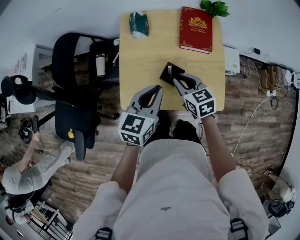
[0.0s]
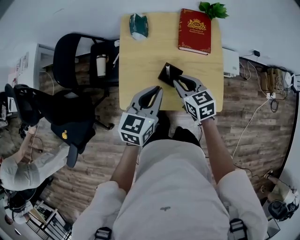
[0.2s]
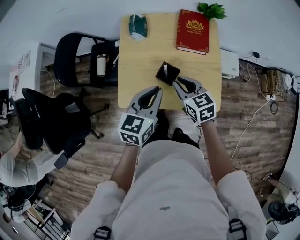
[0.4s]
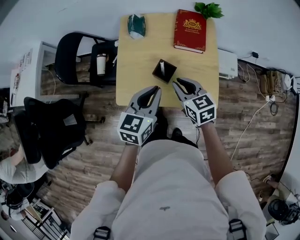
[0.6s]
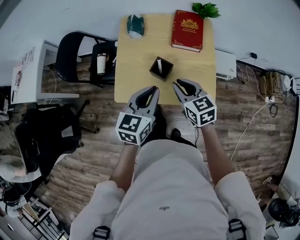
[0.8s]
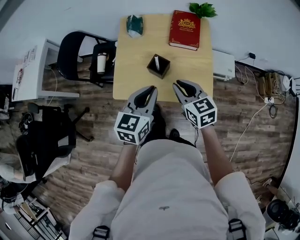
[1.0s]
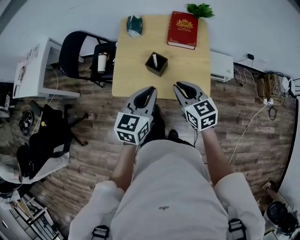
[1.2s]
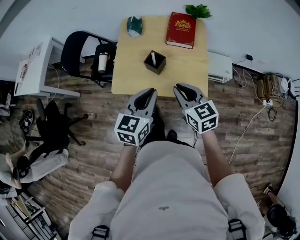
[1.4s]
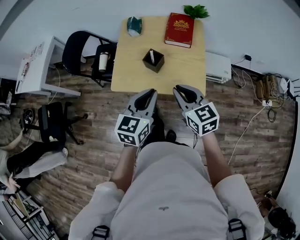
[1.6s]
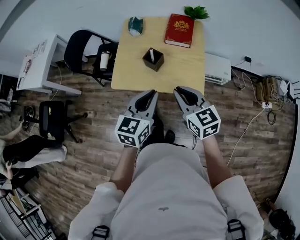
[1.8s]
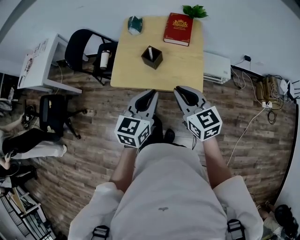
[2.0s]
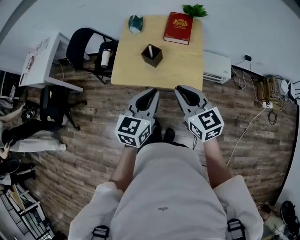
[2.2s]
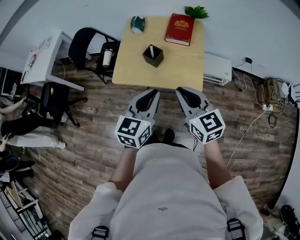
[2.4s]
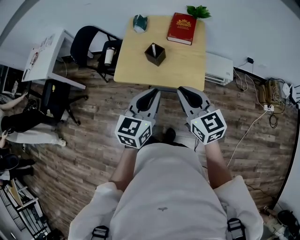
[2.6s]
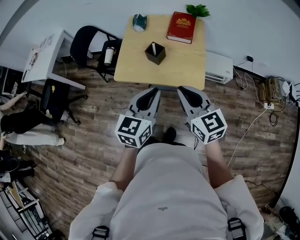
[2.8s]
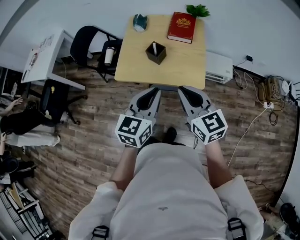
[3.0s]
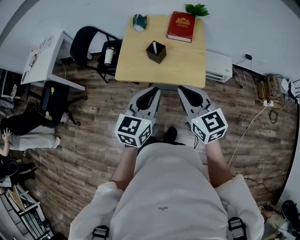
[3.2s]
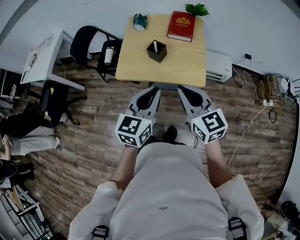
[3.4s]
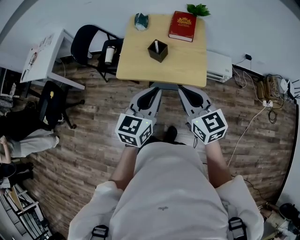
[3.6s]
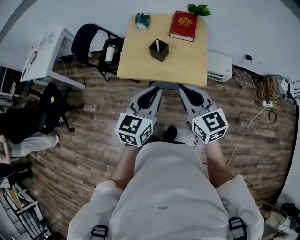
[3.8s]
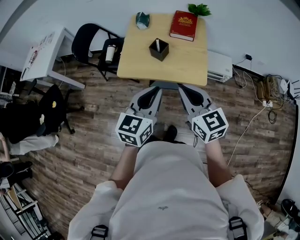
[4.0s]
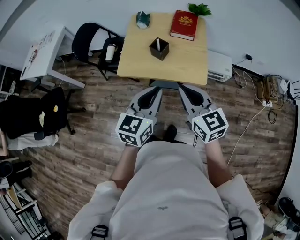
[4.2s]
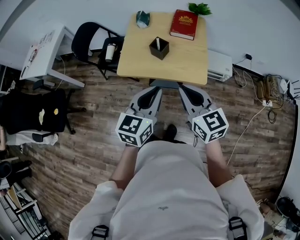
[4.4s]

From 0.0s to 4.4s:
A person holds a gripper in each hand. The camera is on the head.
From 0.0s to 1.4s: The right gripper is displaced backward, upward and to the right by roughly 20 cm. Meanwhile the left gripper travels backward and to the right by roughly 15 cm.
From 1.4s to 3.0s: Both grippers travel together backward and upward, about 15 cm.
From 3.0s to 4.4s: There are only small adjustments of the grippers.

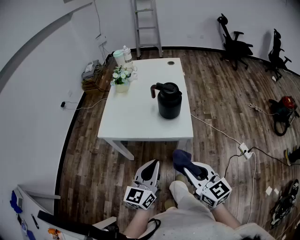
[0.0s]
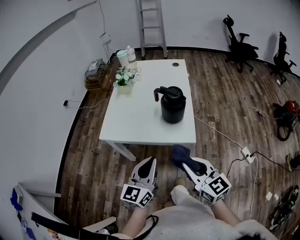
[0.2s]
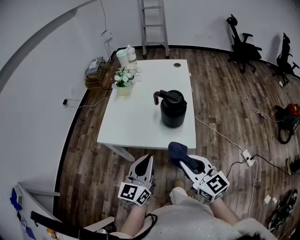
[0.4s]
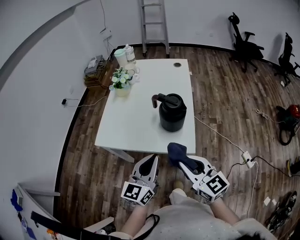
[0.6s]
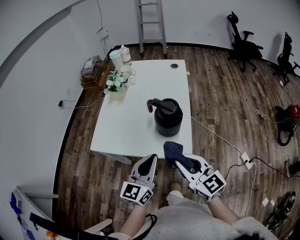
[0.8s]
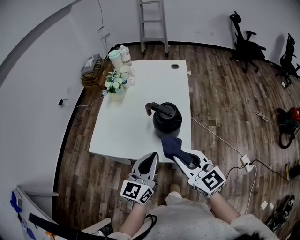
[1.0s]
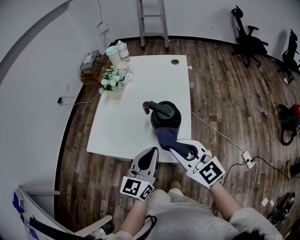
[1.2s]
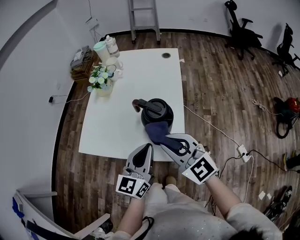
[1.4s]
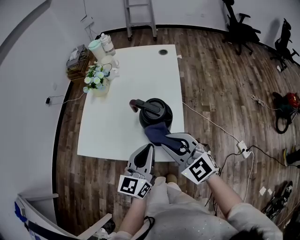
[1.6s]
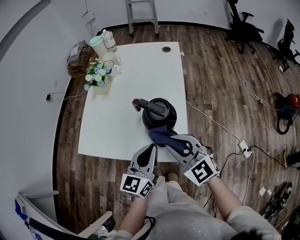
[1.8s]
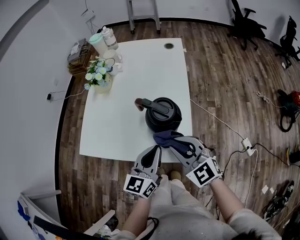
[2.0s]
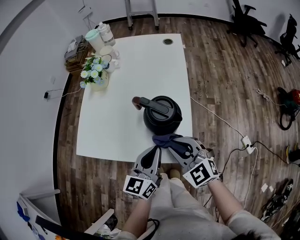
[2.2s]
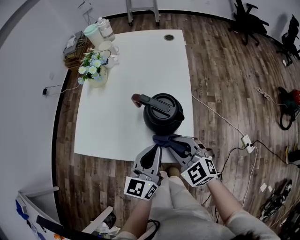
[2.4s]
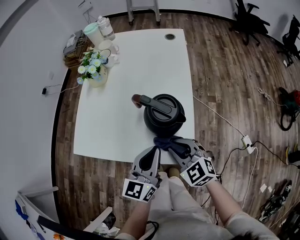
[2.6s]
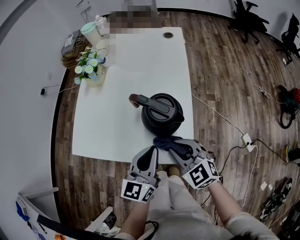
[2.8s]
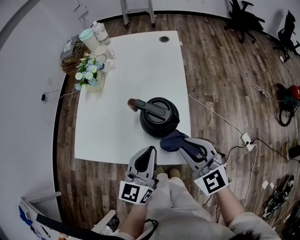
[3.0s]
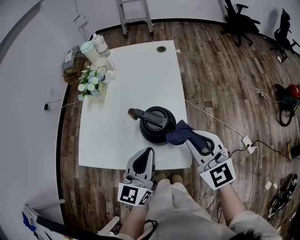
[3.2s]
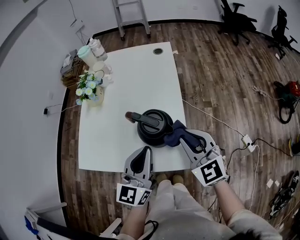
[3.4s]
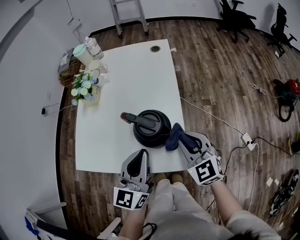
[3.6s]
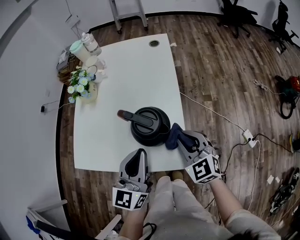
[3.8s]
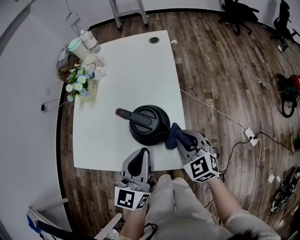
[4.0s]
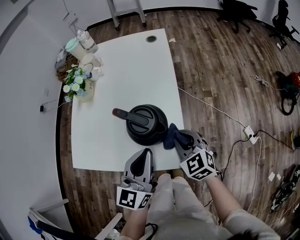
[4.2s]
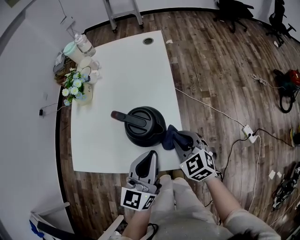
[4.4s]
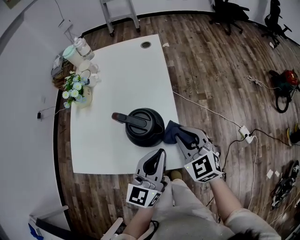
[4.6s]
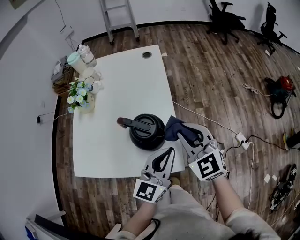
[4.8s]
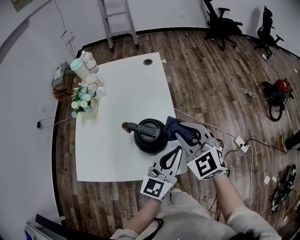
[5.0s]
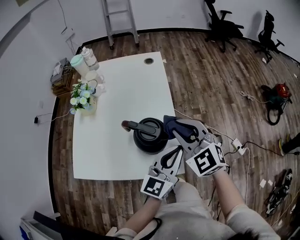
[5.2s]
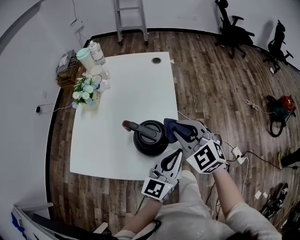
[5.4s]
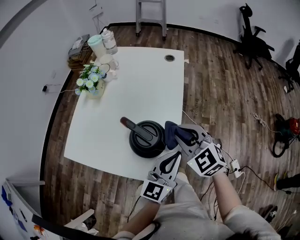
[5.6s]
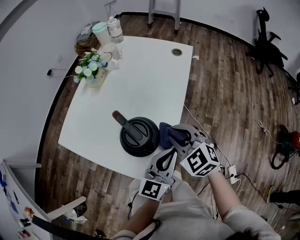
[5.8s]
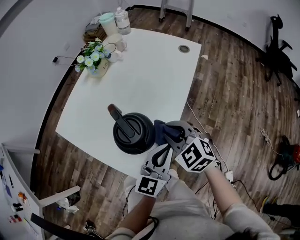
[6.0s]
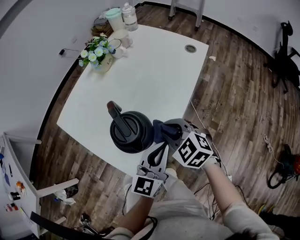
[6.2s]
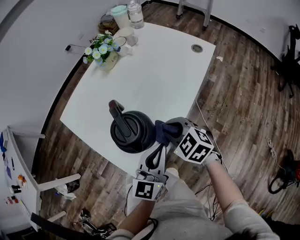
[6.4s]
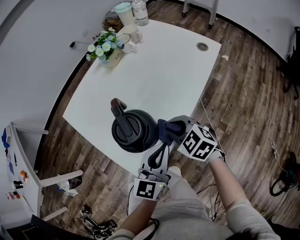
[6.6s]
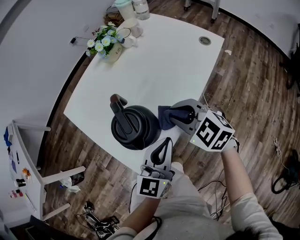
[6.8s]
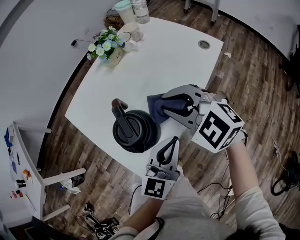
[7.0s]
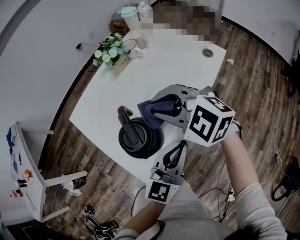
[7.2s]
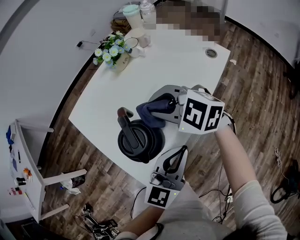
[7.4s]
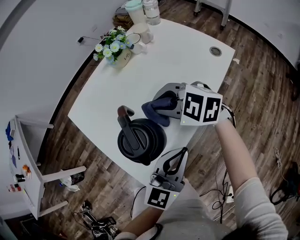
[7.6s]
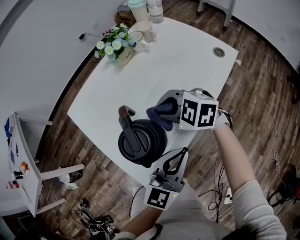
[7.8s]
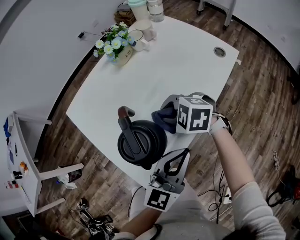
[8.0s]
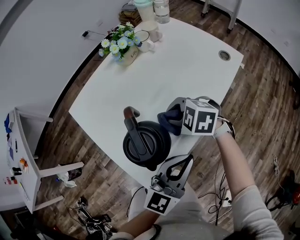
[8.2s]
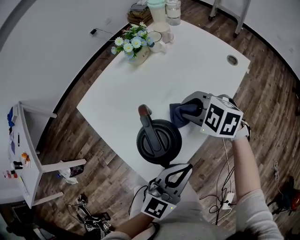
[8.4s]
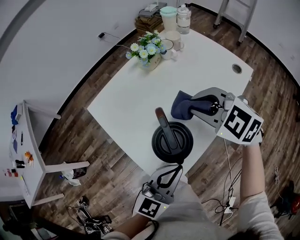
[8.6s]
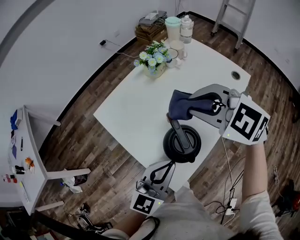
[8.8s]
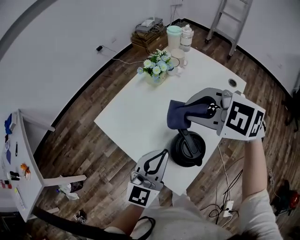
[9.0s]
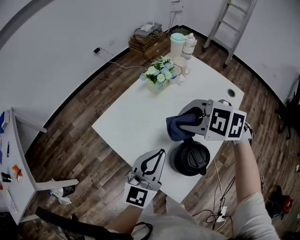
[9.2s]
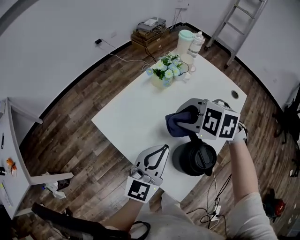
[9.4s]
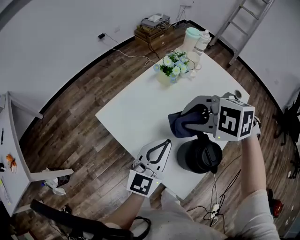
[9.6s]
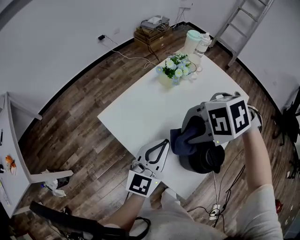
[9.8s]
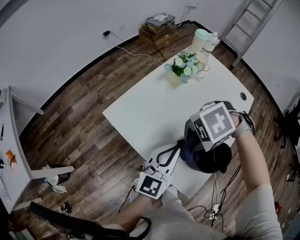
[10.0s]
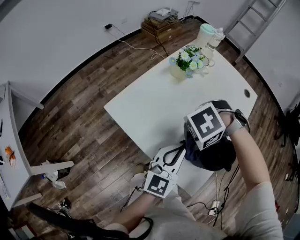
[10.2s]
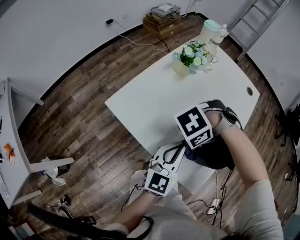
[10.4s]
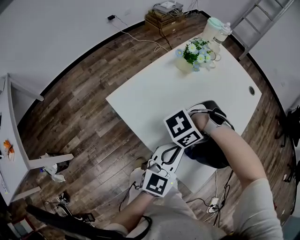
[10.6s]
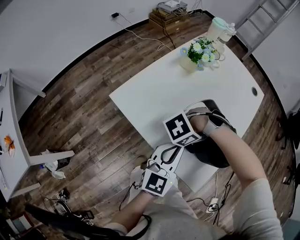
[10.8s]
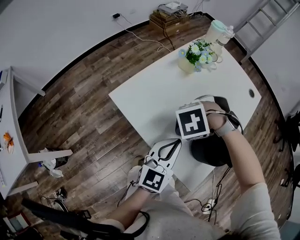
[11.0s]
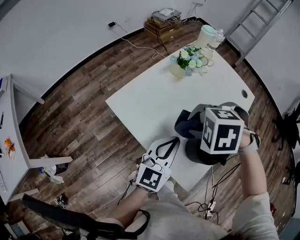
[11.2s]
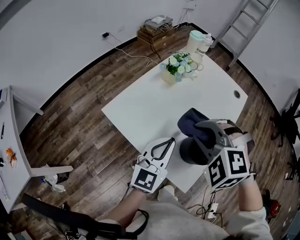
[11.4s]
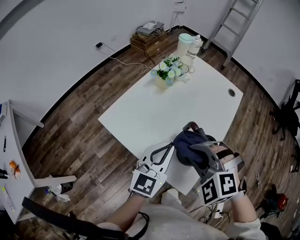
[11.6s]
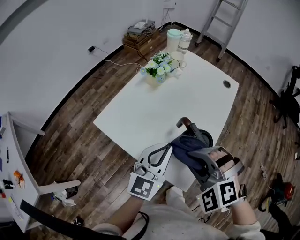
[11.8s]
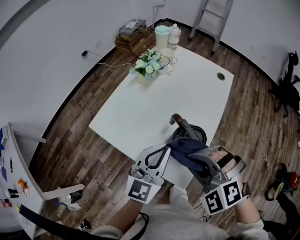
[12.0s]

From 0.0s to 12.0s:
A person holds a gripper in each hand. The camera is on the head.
From 0.0s to 1.6s: The left gripper heads forward and to the right, covering roughly 25 cm. Meanwhile the right gripper goes approximately 25 cm forward, and turns by roughly 30 degrees.
From 1.6s to 3.0s: The right gripper goes downward and returns, about 15 cm each way.
From 3.0s to 4.4s: The right gripper travels downward by roughly 10 cm.
From 4.4s to 6.0s: The right gripper reaches about 15 cm upward, then returns, and turns by approximately 40 degrees; the left gripper ends up roughly 15 cm from where it was.
From 6.0s to 7.6s: The left gripper ends up roughly 5 cm from where it was; the right gripper swings up and down, roughly 15 cm each way, with 2 reversals, and turns by approximately 40 degrees.
From 7.6s to 9.0s: The right gripper heads upward and to the left, covering about 15 cm. Meanwhile the left gripper heads to the left and forward, covering roughly 20 cm.
From 9.0s to 10.4s: The left gripper moves downward, about 10 cm. The right gripper shifts about 20 cm downward, and swivels approximately 80 degrees.
From 10.4s to 12.0s: The two grippers go about 10 cm upward. The right gripper swivels roughly 90 degrees.

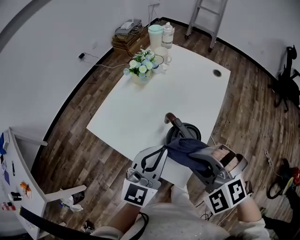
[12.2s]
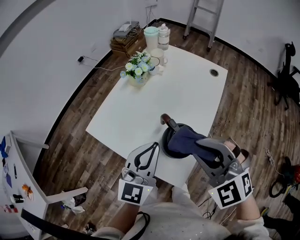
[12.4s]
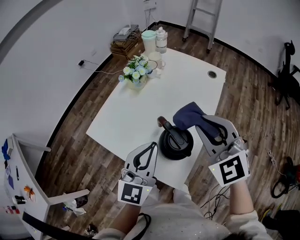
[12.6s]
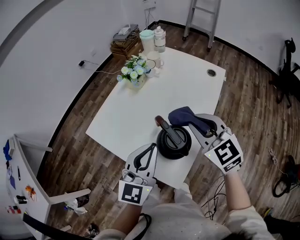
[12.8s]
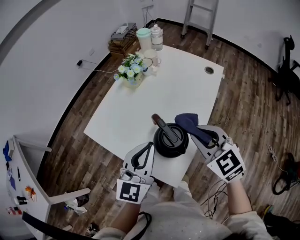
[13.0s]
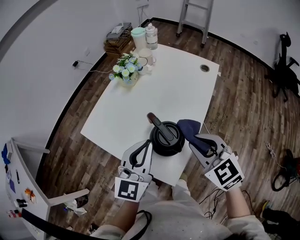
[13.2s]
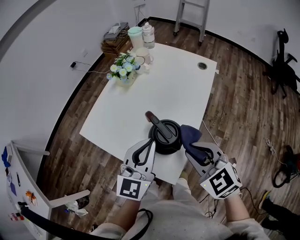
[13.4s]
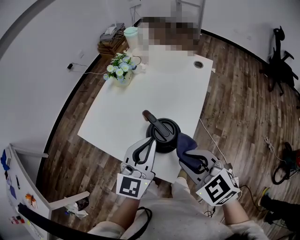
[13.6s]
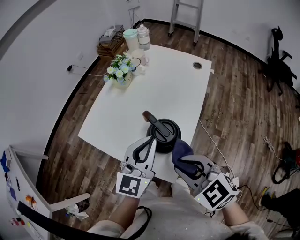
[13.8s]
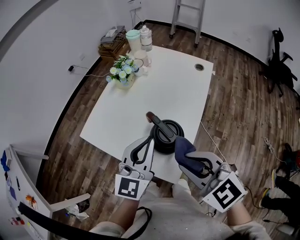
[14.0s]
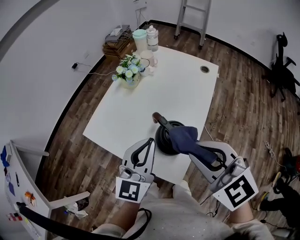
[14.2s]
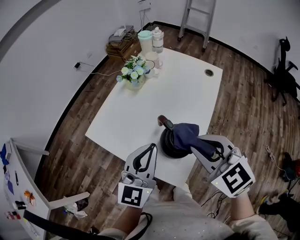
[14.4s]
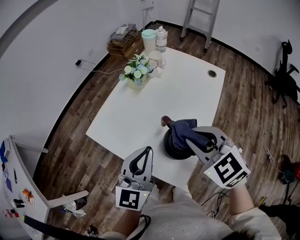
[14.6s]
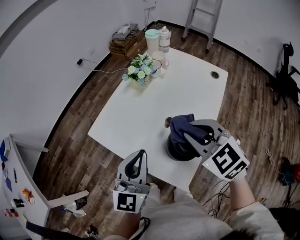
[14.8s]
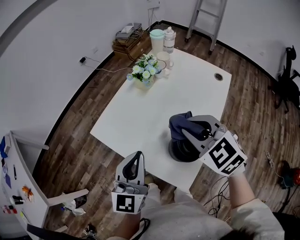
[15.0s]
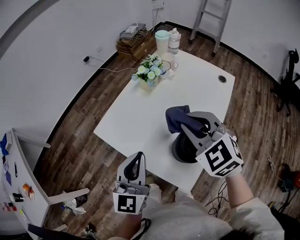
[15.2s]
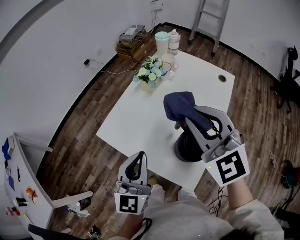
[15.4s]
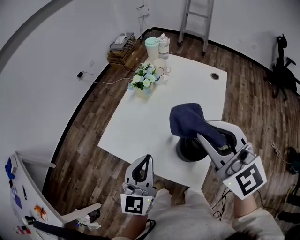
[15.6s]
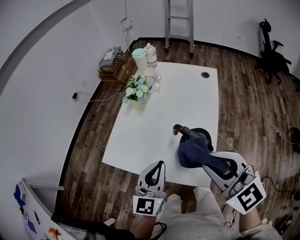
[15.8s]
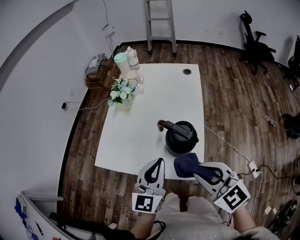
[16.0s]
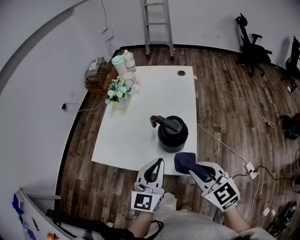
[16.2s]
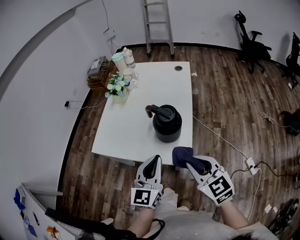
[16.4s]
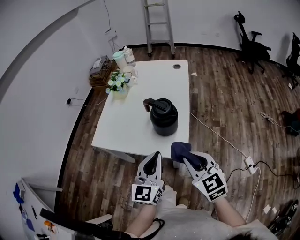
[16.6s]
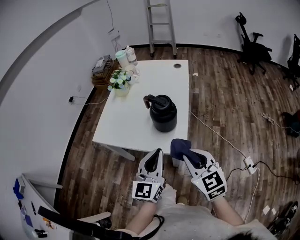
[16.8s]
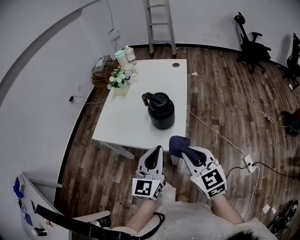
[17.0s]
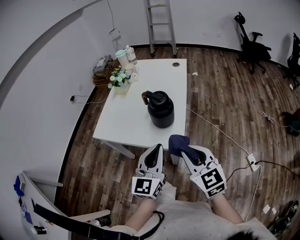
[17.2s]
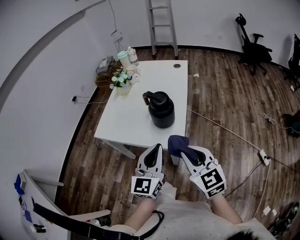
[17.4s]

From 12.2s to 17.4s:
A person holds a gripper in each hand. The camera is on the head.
From 12.2s to 14.0s: The right gripper goes forward and returns, about 10 cm each way, and turns by roughly 40 degrees.
From 14.0s to 15.6s: The right gripper is displaced forward and upward by approximately 15 cm, and rotates about 30 degrees. Meanwhile the left gripper goes some 15 cm to the left.
From 15.6s to 17.4s: The right gripper goes some 30 cm backward and downward, and swivels approximately 30 degrees. The left gripper moves backward and to the right, about 25 cm.

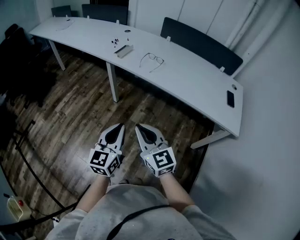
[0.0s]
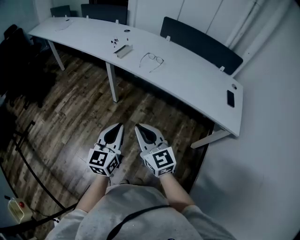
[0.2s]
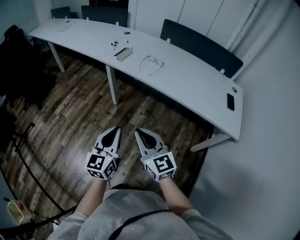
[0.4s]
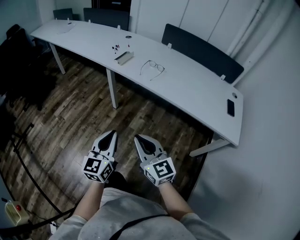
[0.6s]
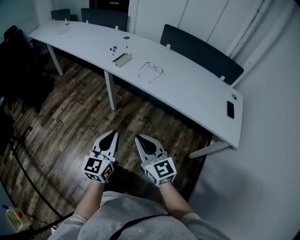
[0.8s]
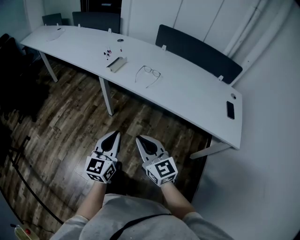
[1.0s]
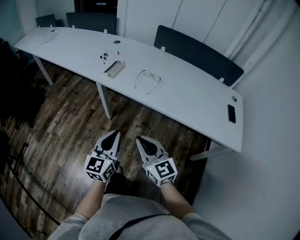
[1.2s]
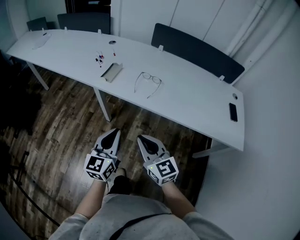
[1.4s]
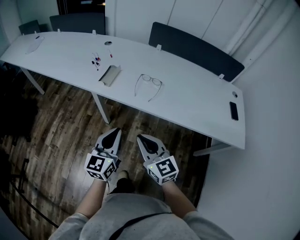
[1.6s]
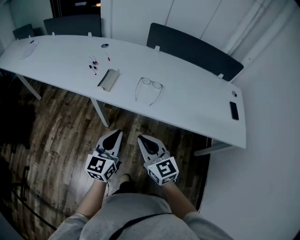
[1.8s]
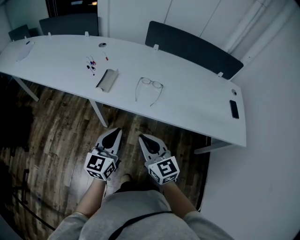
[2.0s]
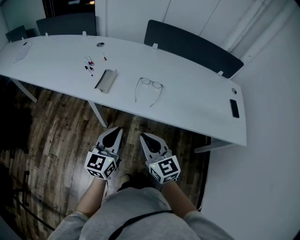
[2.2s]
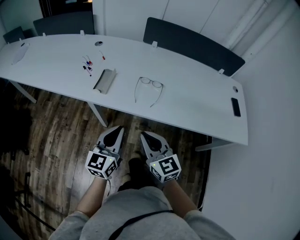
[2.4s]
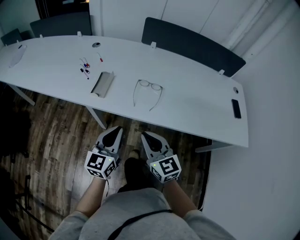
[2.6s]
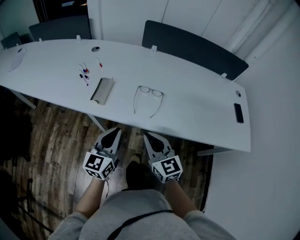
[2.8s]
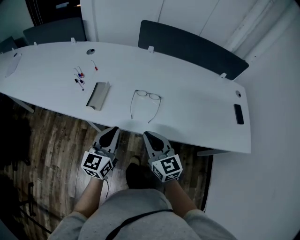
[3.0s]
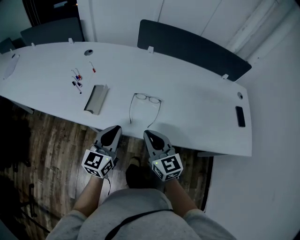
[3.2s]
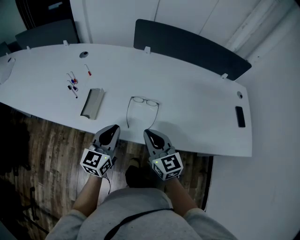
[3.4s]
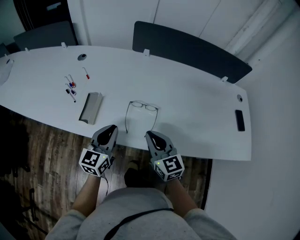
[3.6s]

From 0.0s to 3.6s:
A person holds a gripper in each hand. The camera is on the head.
From 0.0s to 1.8s: Both grippers travel together forward, about 35 cm.
From 1.8s to 3.6s: The grippers both shift forward by about 25 cm.
